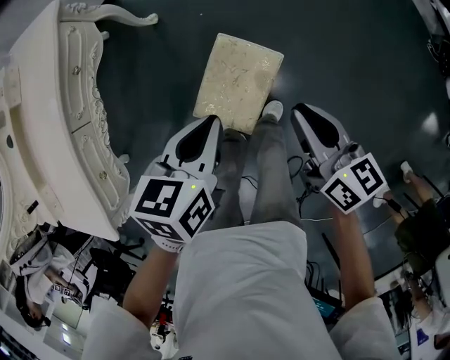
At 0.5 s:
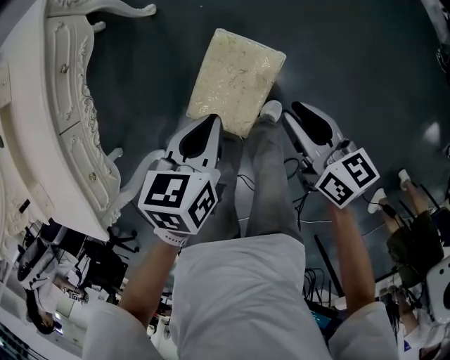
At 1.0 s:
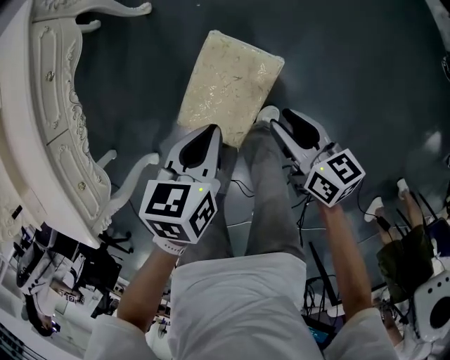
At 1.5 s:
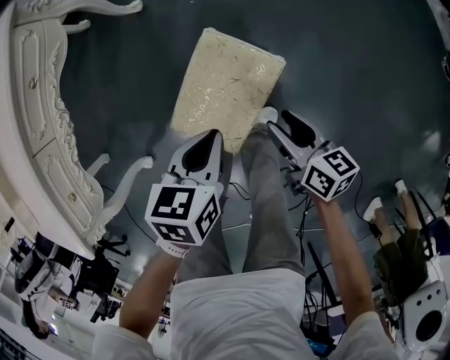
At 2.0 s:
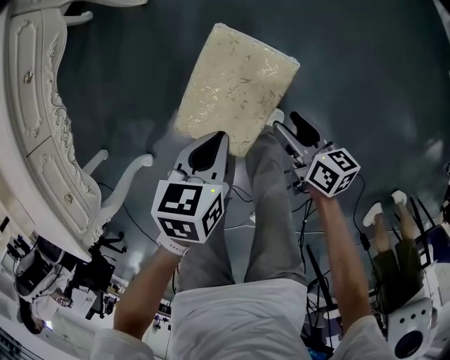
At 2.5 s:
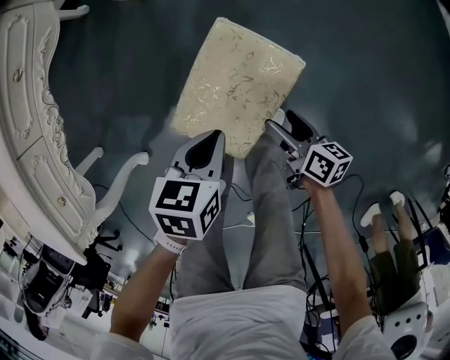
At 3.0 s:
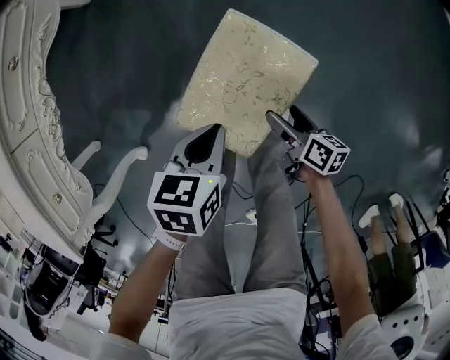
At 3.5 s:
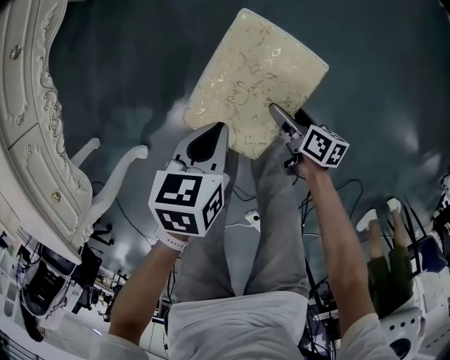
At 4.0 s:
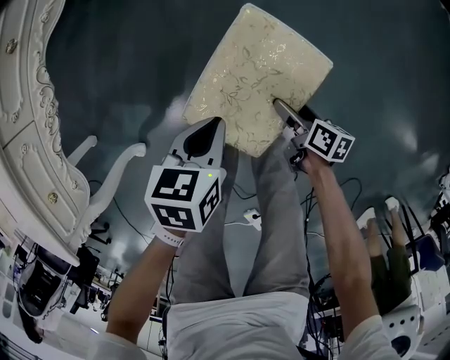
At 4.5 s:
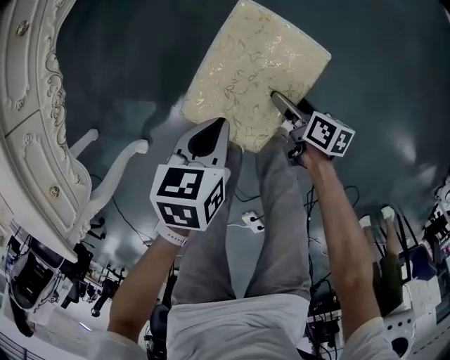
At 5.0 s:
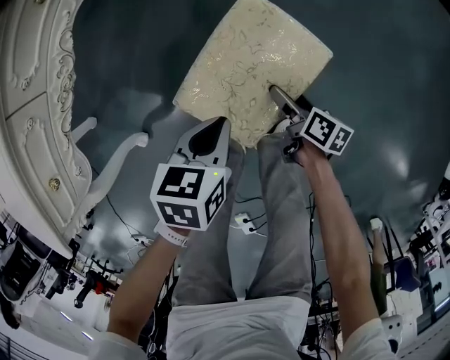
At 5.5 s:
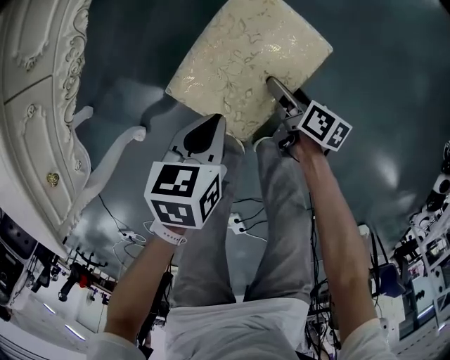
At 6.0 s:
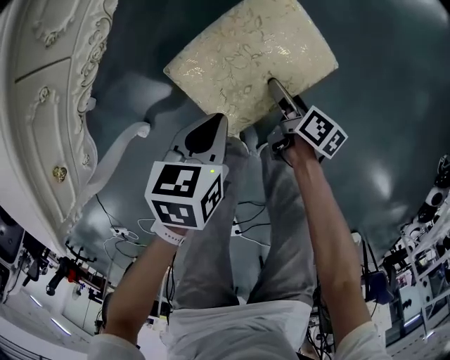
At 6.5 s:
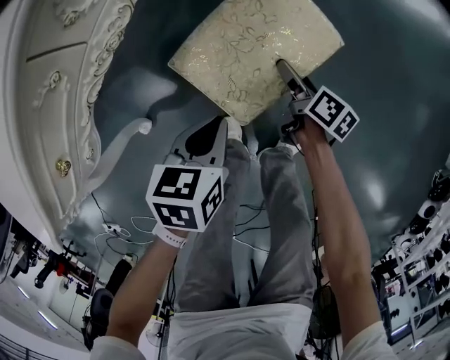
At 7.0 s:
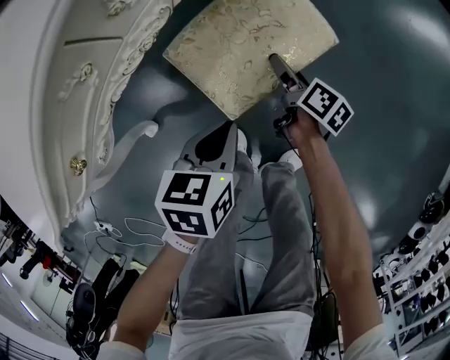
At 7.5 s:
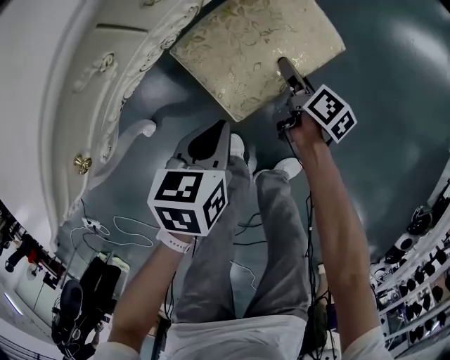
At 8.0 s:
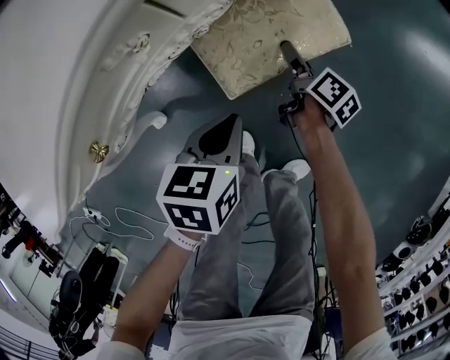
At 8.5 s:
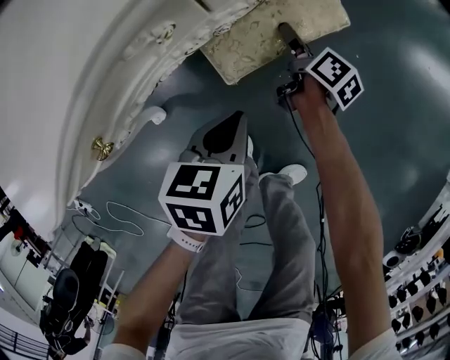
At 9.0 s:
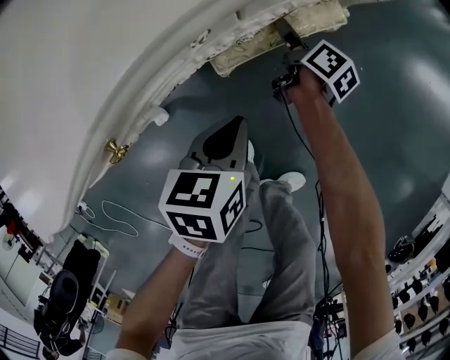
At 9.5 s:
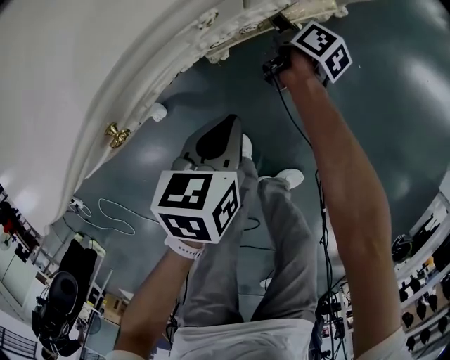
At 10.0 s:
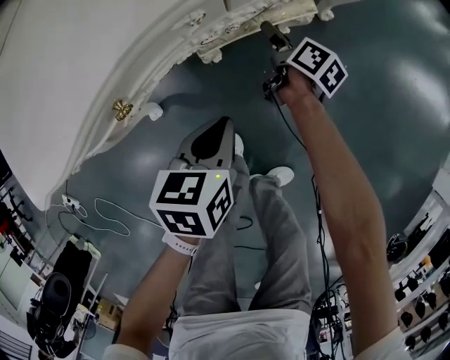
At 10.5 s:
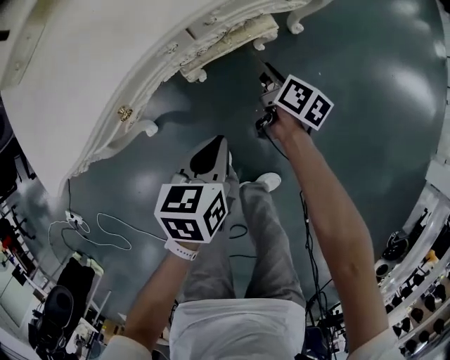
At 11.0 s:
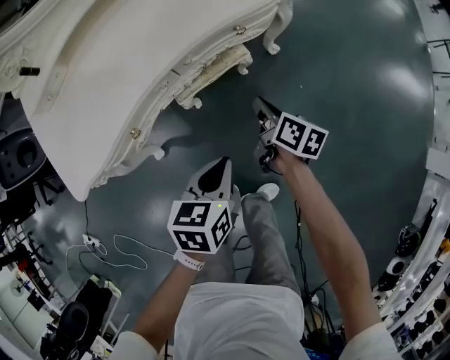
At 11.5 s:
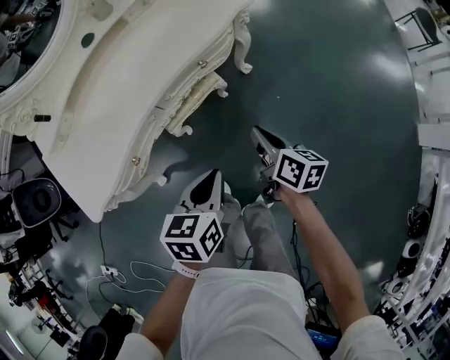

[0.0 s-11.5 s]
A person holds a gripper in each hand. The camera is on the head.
0.0 to 2.0 s: Both grippers move downward, some 25 cm. The right gripper changes its angle by some 20 degrees, and opens its fingers.
2.0 to 4.0 s: The right gripper shifts some 15 cm downward; the left gripper goes roughly 10 cm to the left and downward.
4.0 to 6.0 s: The left gripper shifts approximately 15 cm to the left, while the right gripper travels to the left and forward by about 25 cm.
6.0 to 7.5 s: The right gripper travels forward and to the left by about 15 cm; the left gripper travels to the left by about 10 cm.
7.5 to 9.5 s: The left gripper heads to the left, covering roughly 10 cm. The right gripper goes about 25 cm to the left and forward.
9.5 to 11.5 s: The left gripper is displaced upward and to the right by some 35 cm. Meanwhile the right gripper is displaced upward, backward and to the right by roughly 50 cm, and closes up.

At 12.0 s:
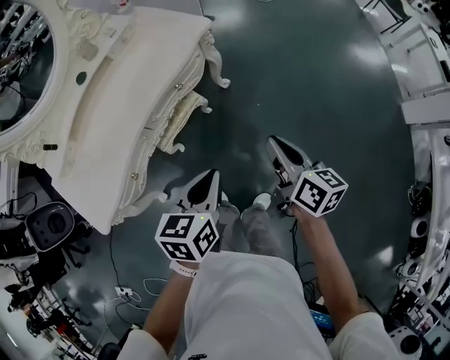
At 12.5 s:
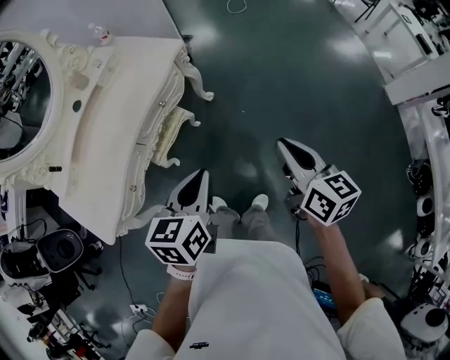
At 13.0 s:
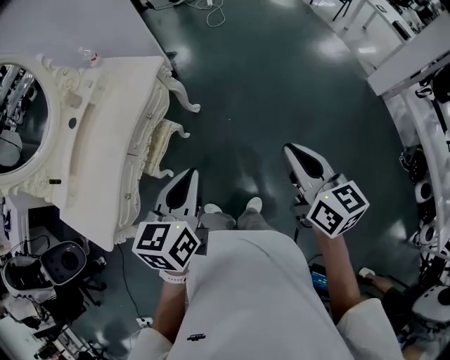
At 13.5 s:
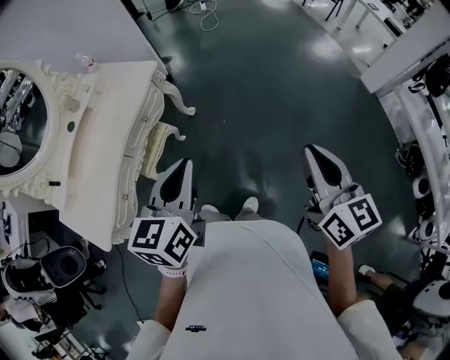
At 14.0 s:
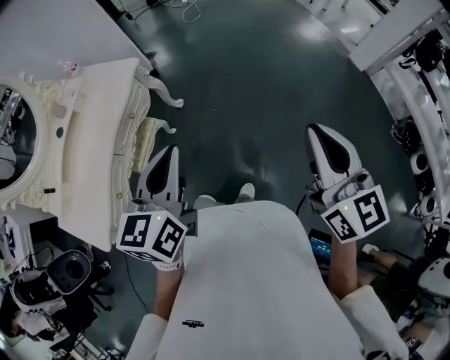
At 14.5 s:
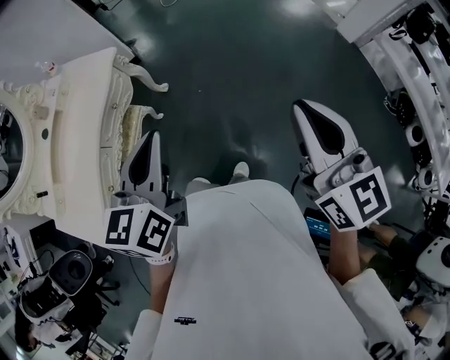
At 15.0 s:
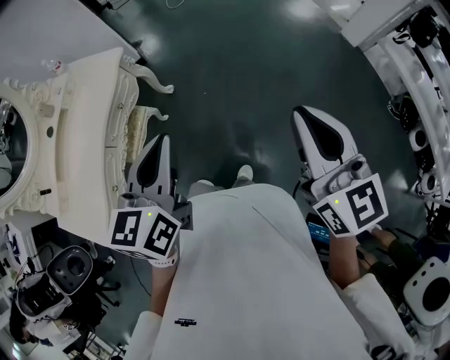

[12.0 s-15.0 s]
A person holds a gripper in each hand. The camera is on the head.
12.0 to 13.5 s: The left gripper is displaced upward and to the right by roughly 20 cm, and turns by roughly 20 degrees. The right gripper moves to the right, upward and backward, some 35 cm, and turns by some 30 degrees.
13.5 to 15.0 s: The right gripper moves approximately 5 cm.

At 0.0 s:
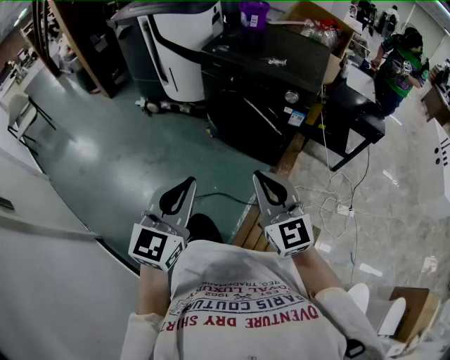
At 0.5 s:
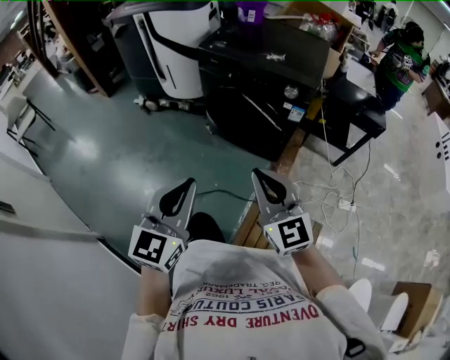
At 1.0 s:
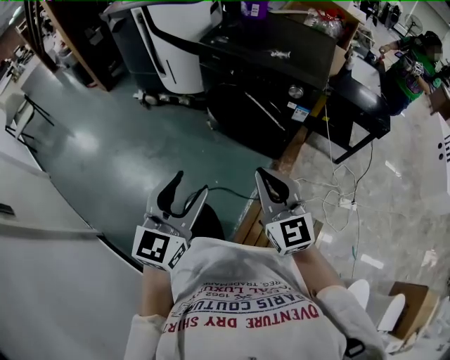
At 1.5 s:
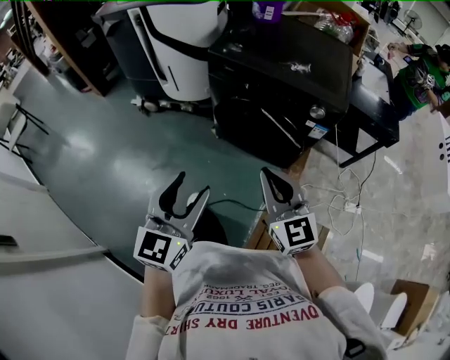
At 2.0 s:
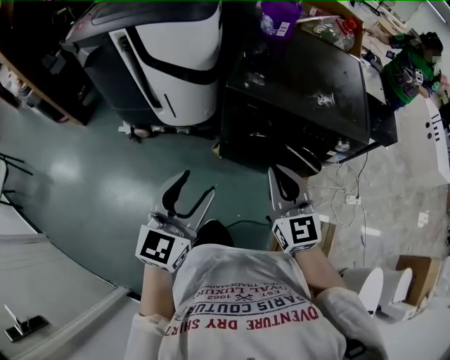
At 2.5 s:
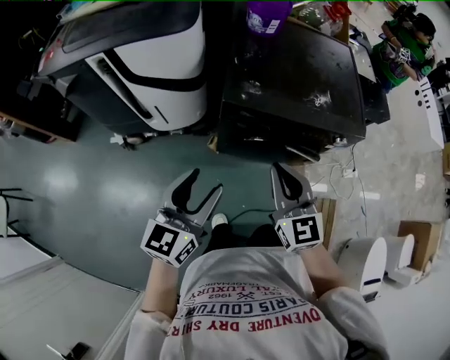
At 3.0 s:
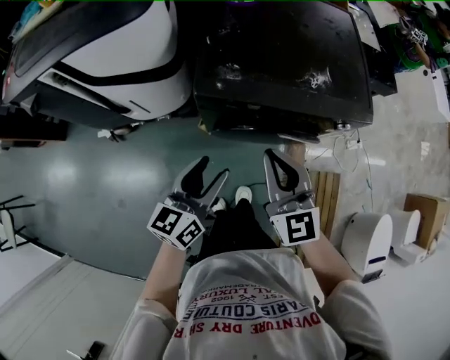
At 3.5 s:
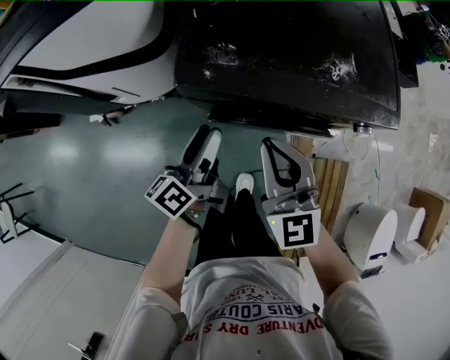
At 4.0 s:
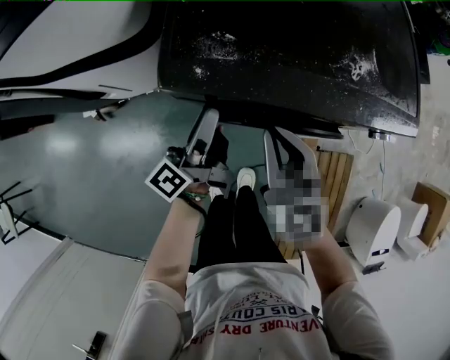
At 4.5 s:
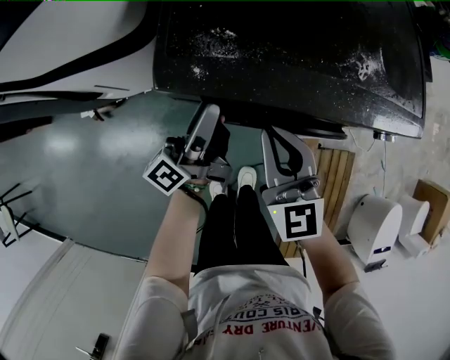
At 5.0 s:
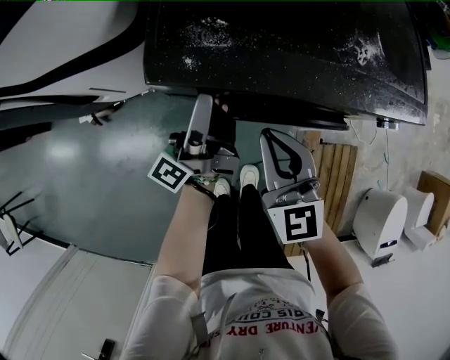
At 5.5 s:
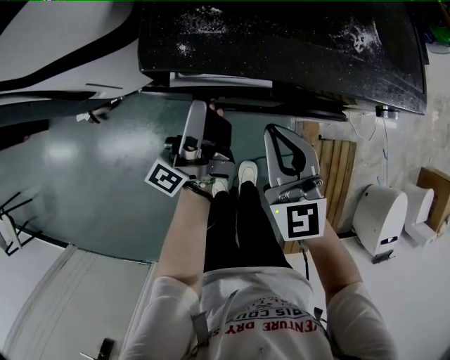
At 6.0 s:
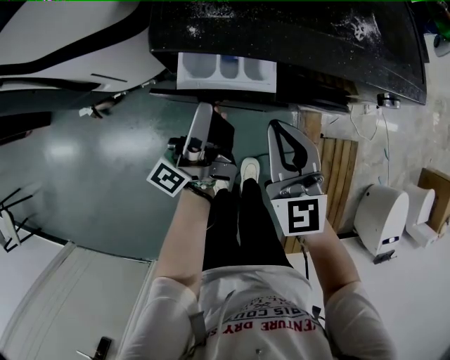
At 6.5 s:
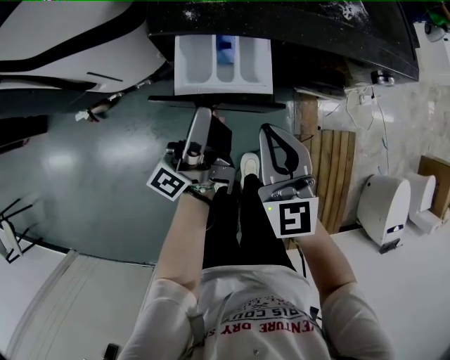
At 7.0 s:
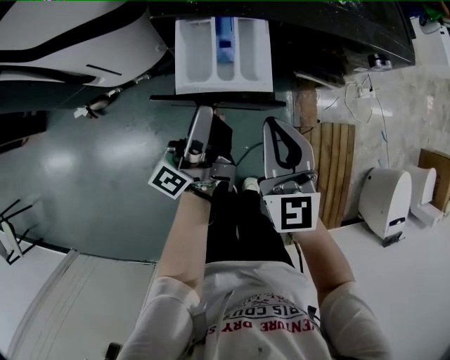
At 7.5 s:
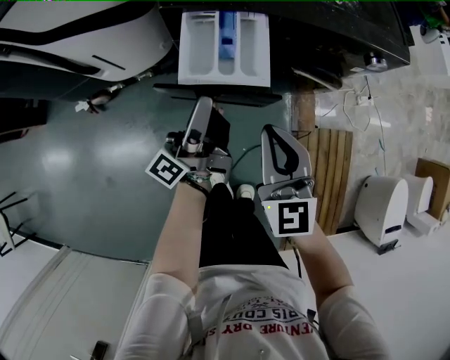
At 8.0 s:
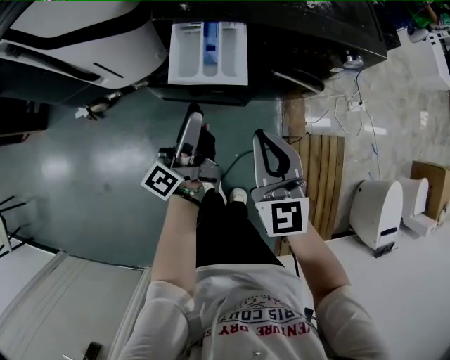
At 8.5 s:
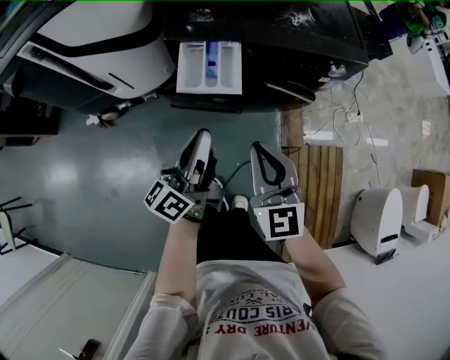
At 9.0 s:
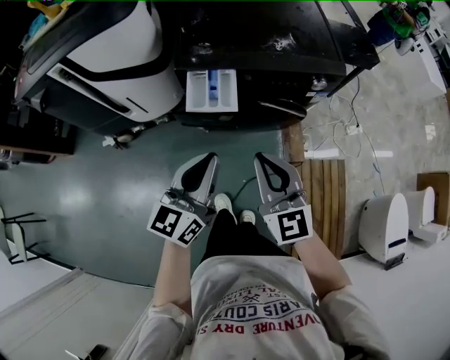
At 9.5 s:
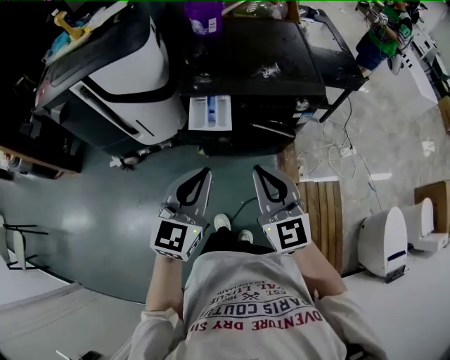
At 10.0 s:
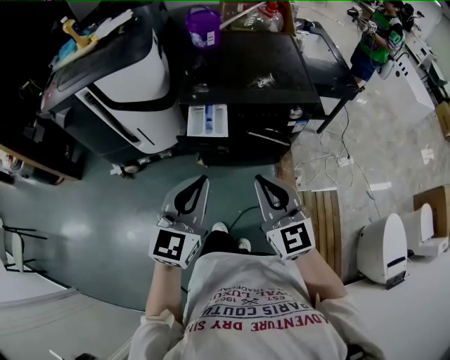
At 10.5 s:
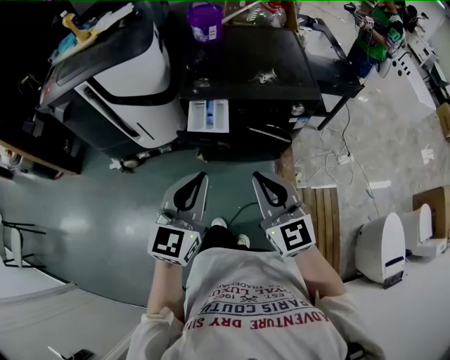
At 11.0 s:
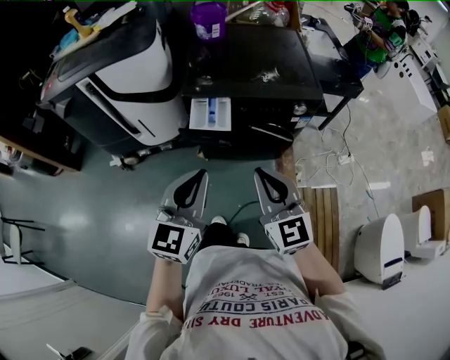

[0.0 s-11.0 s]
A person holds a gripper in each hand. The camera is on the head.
0.0 to 2.0 s: Both grippers are carried forward and to the left, roughly 40 cm. The left gripper opens up. Meanwhile the right gripper changes its angle by approximately 20 degrees.
2.0 to 3.5 s: The left gripper is displaced forward and downward by about 30 cm, and rolls counterclockwise, seen from behind, by roughly 60 degrees, while the right gripper is displaced forward by approximately 15 cm.
3.5 to 5.5 s: The right gripper heads downward, covering about 10 cm. The left gripper changes its angle by some 30 degrees.
5.5 to 7.5 s: The two grippers go roughly 10 cm backward.
7.5 to 9.0 s: Both grippers travel together upward and backward, roughly 20 cm. The left gripper rolls clockwise, seen from behind, by some 60 degrees, and closes its fingers.
9.0 to 11.0 s: The two grippers go approximately 10 cm upward and backward.

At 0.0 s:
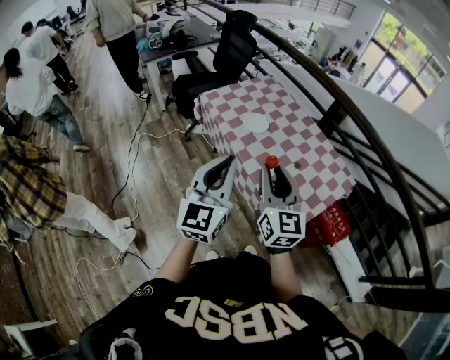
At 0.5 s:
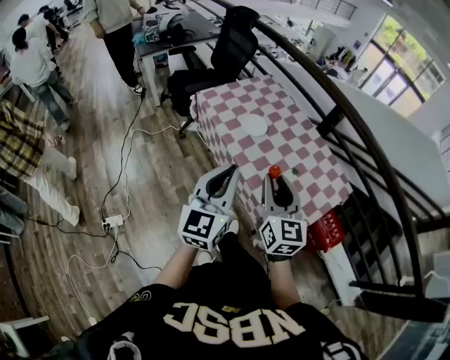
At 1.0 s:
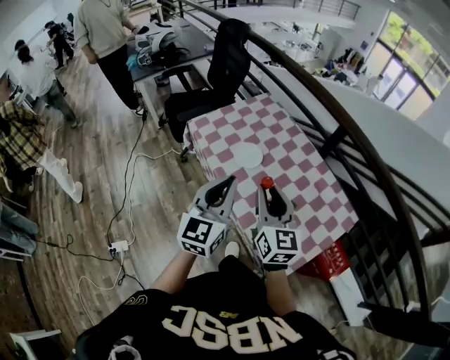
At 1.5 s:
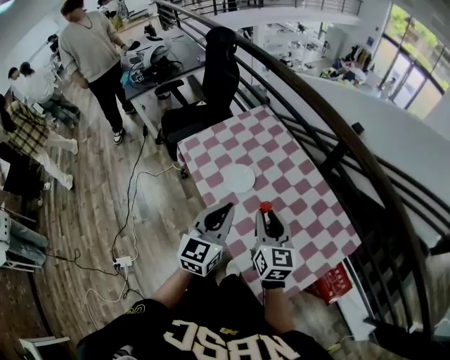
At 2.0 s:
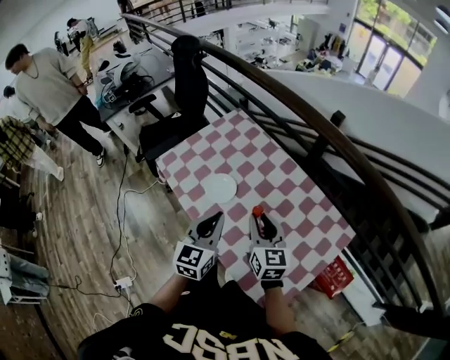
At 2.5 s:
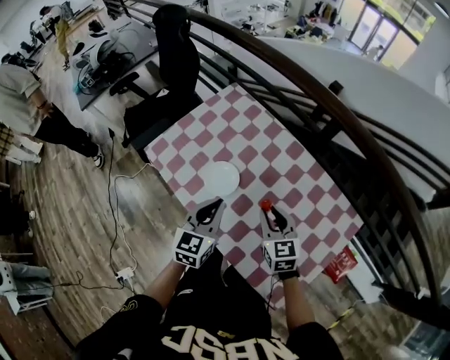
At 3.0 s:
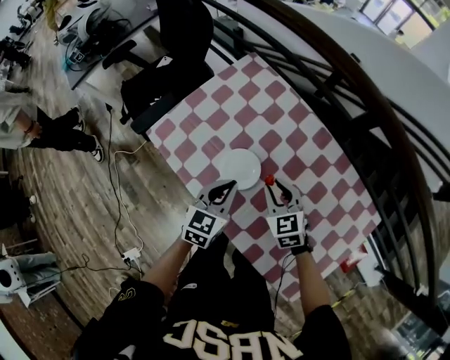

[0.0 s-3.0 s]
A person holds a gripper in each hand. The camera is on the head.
0.0 to 1.5 s: Both grippers travel together forward and downward, some 30 cm.
1.5 to 3.0 s: Both grippers travel together downward and forward, some 25 cm. The left gripper rotates roughly 30 degrees. Meanwhile the right gripper rotates approximately 30 degrees.
